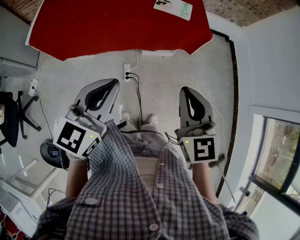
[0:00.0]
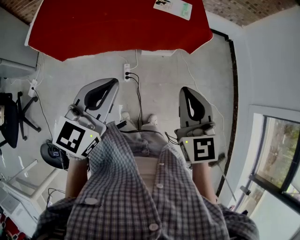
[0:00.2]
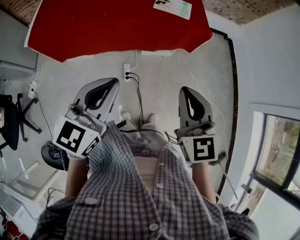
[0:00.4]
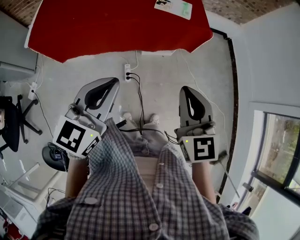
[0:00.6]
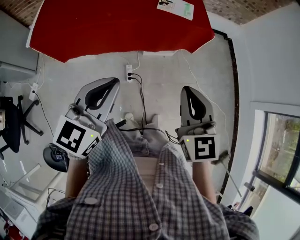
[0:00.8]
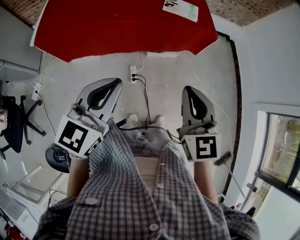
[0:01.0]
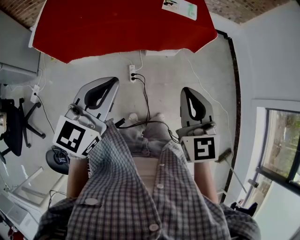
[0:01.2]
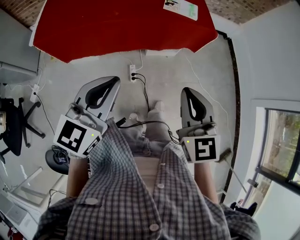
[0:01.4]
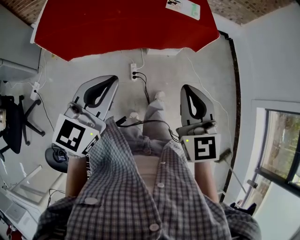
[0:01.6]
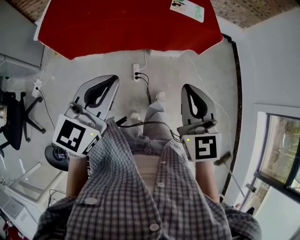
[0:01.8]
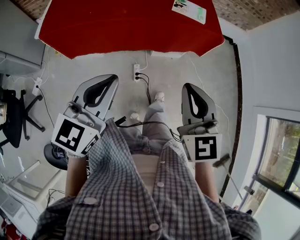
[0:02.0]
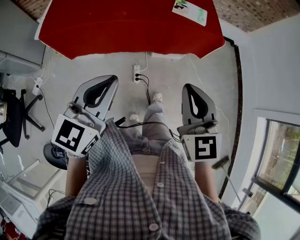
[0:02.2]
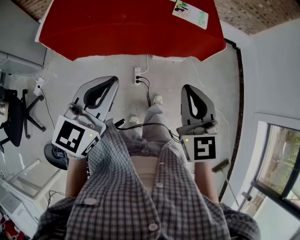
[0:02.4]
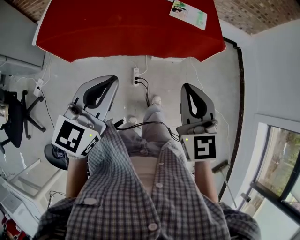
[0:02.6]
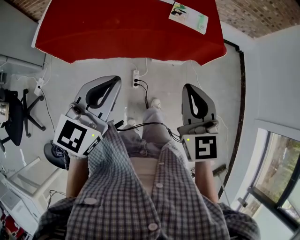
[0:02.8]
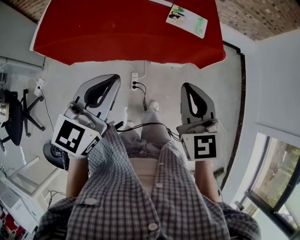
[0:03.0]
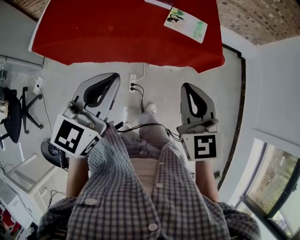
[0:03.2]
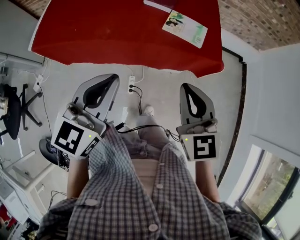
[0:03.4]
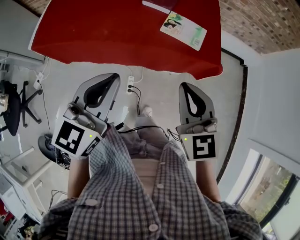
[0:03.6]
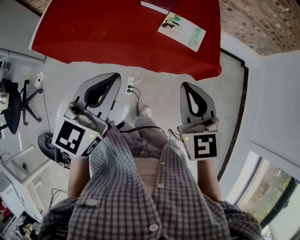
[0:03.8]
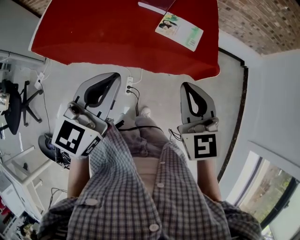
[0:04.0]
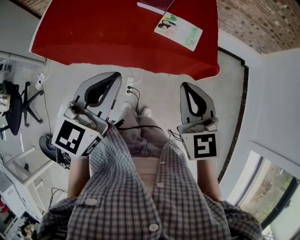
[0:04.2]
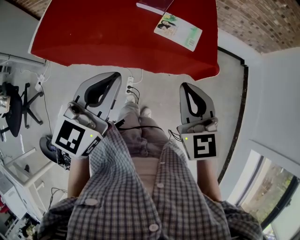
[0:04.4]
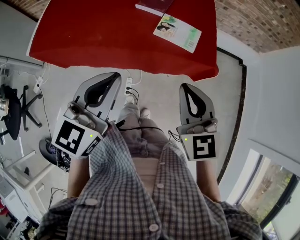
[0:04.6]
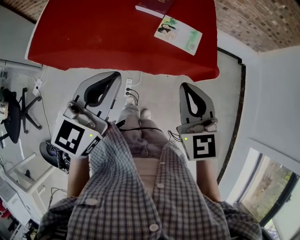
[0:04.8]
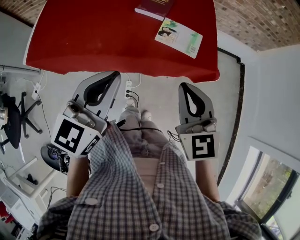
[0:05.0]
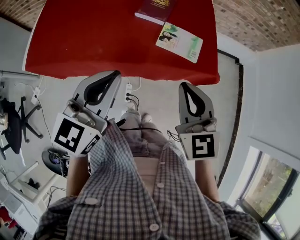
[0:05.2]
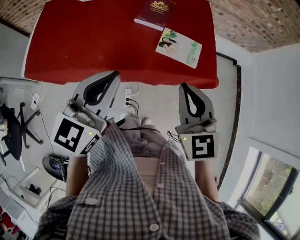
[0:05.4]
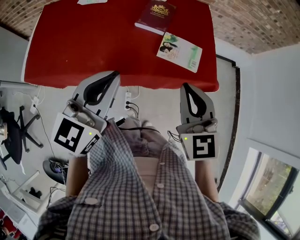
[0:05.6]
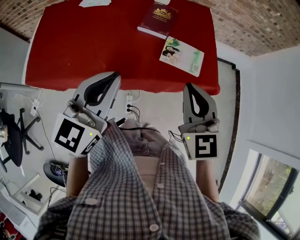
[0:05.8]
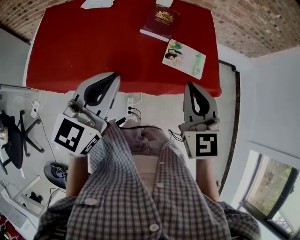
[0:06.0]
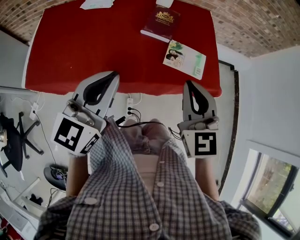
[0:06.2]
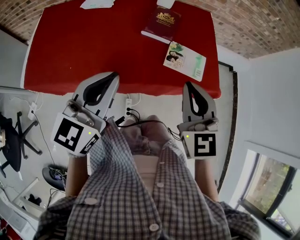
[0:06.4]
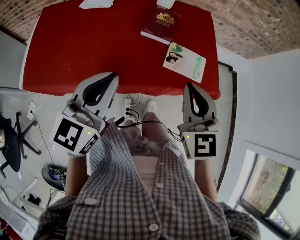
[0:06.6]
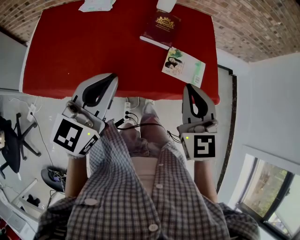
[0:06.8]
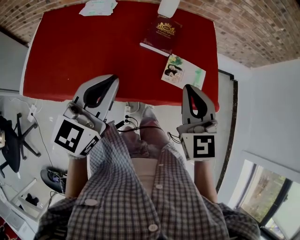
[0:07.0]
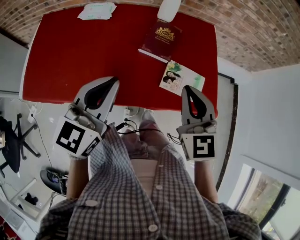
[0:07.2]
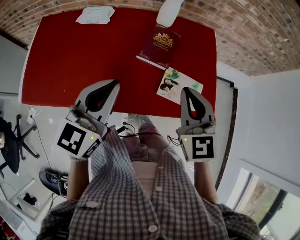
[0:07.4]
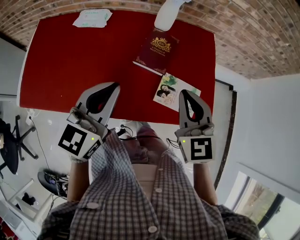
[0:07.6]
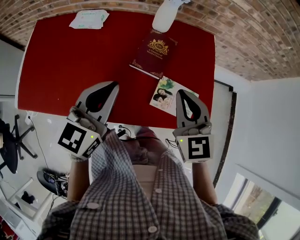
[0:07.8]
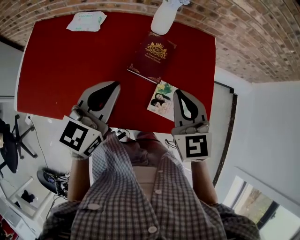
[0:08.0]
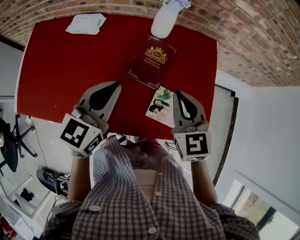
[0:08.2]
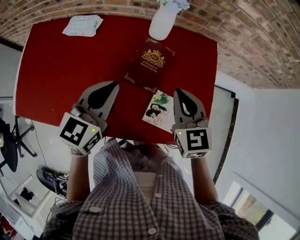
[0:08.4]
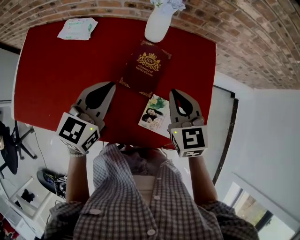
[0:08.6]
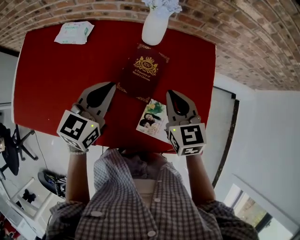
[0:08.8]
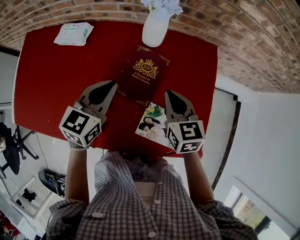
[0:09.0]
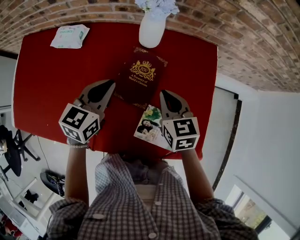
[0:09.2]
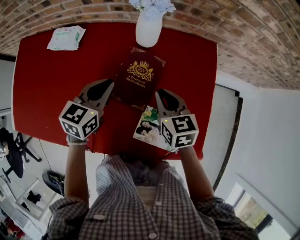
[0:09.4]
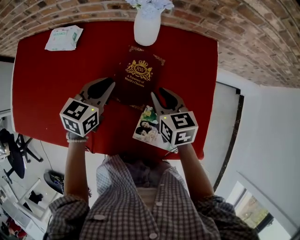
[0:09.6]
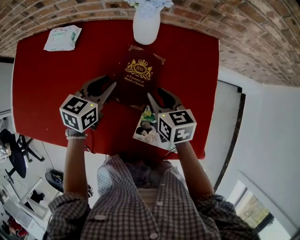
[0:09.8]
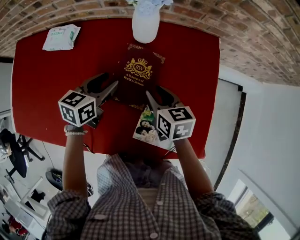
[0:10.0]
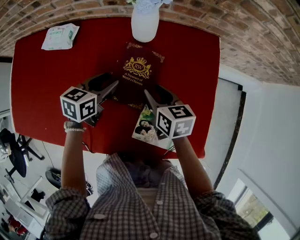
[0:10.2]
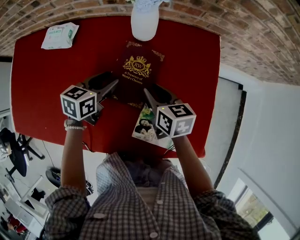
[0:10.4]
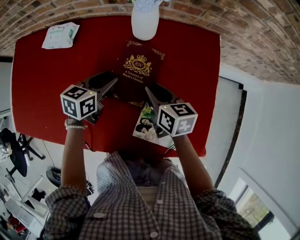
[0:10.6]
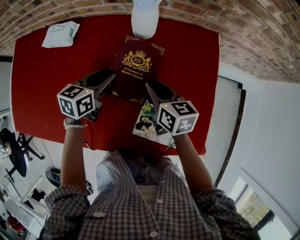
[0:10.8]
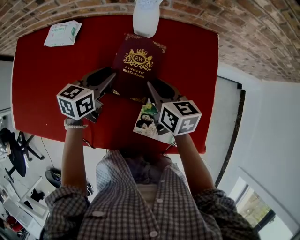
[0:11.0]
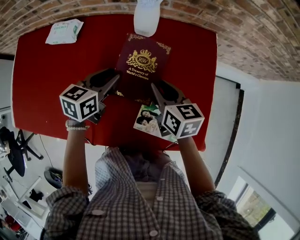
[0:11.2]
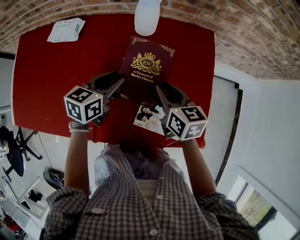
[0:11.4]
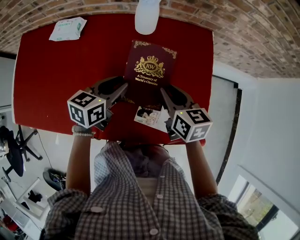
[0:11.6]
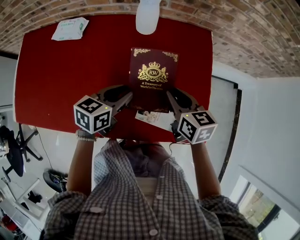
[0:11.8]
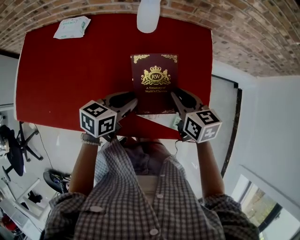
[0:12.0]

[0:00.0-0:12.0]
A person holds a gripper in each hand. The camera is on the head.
0:00.0 to 0:01.6: Both grippers move to the left, roughly 10 cm.
0:01.6 to 0:03.0: The grippers both shift forward by some 15 cm.
0:03.0 to 0:04.4: The right gripper travels forward and to the right by about 10 cm. Meanwhile the left gripper moves to the right and forward, some 10 cm.
0:04.4 to 0:06.0: The two grippers go about 15 cm forward and to the left.
0:06.0 to 0:07.6: Both grippers move forward, approximately 15 cm.
0:07.6 to 0:09.0: The grippers both shift forward and downward by approximately 20 cm. The right gripper rotates roughly 20 degrees.
0:09.0 to 0:10.4: The two grippers go about 10 cm downward. The right gripper turns by some 20 degrees, and opens up. Meanwhile the left gripper changes its angle by approximately 20 degrees, and opens.
0:10.4 to 0:12.0: The left gripper travels backward and to the right by some 15 cm, and closes its fingers. Meanwhile the right gripper heads backward, to the right and upward, covering roughly 15 cm.

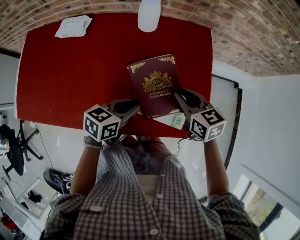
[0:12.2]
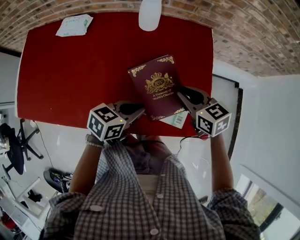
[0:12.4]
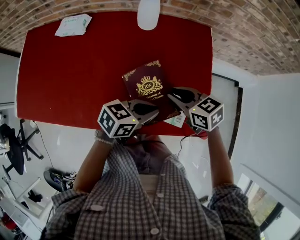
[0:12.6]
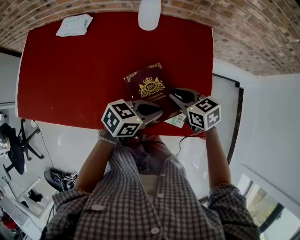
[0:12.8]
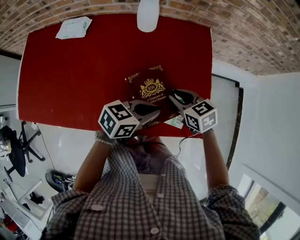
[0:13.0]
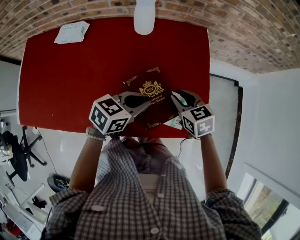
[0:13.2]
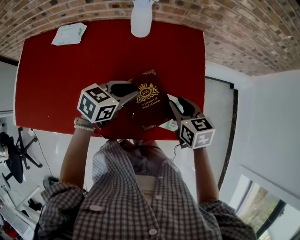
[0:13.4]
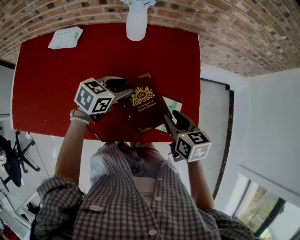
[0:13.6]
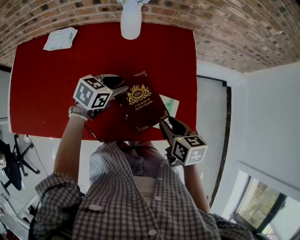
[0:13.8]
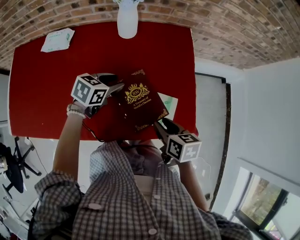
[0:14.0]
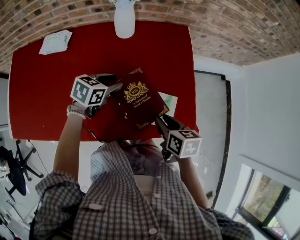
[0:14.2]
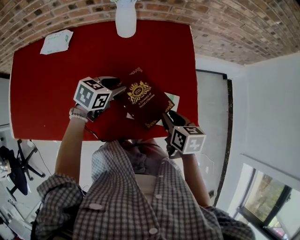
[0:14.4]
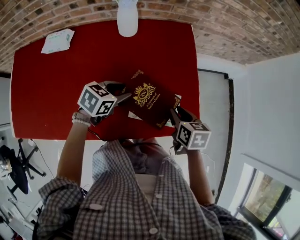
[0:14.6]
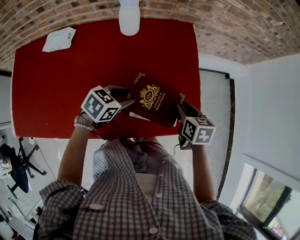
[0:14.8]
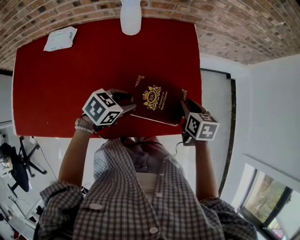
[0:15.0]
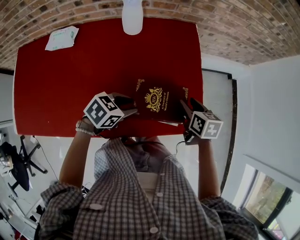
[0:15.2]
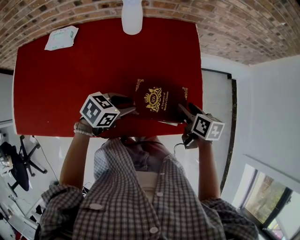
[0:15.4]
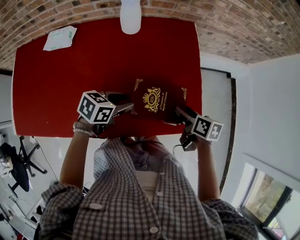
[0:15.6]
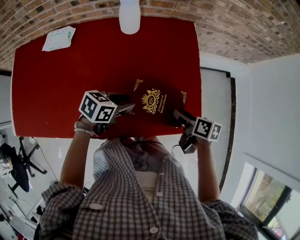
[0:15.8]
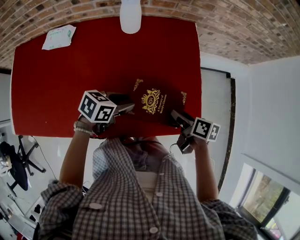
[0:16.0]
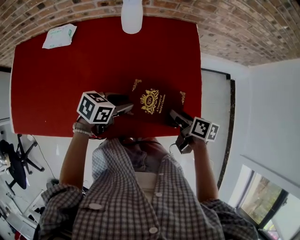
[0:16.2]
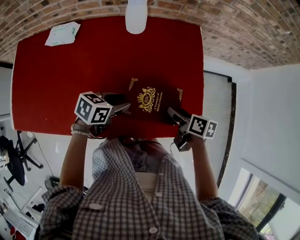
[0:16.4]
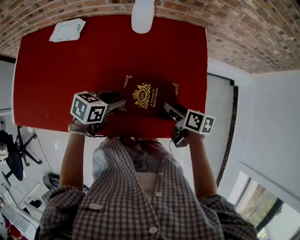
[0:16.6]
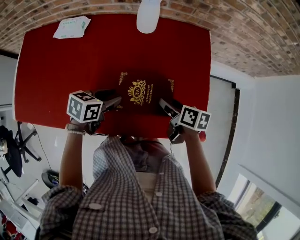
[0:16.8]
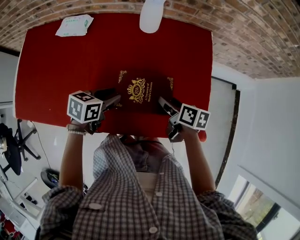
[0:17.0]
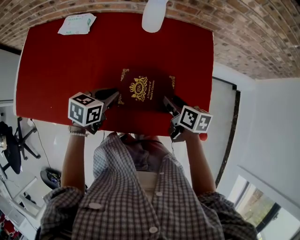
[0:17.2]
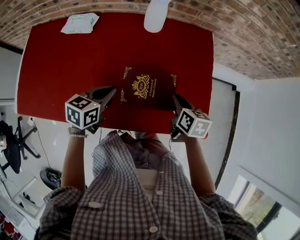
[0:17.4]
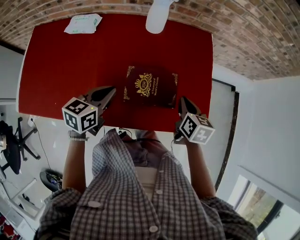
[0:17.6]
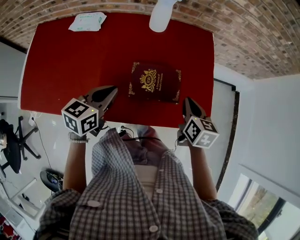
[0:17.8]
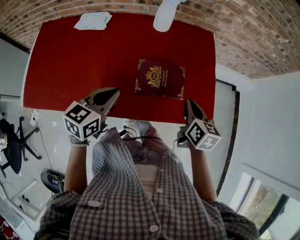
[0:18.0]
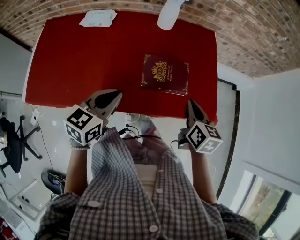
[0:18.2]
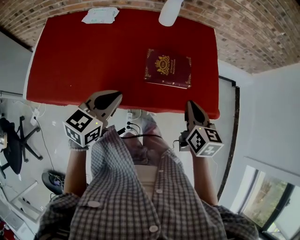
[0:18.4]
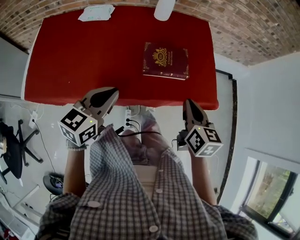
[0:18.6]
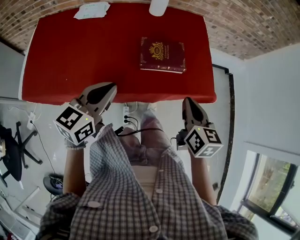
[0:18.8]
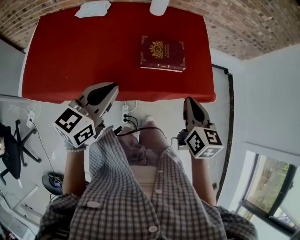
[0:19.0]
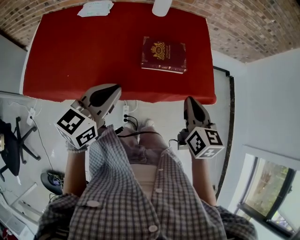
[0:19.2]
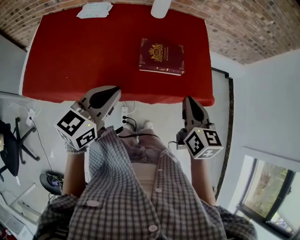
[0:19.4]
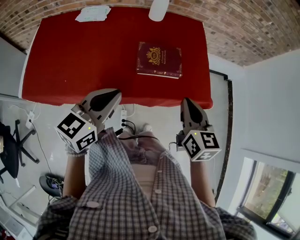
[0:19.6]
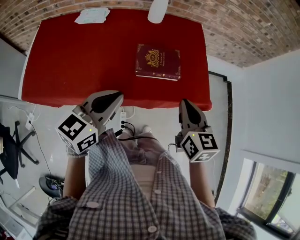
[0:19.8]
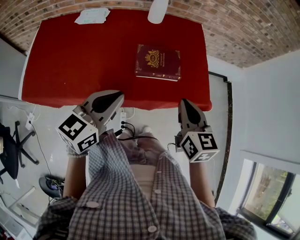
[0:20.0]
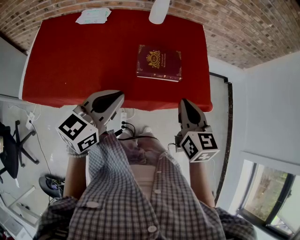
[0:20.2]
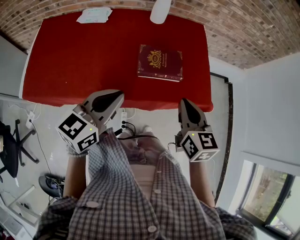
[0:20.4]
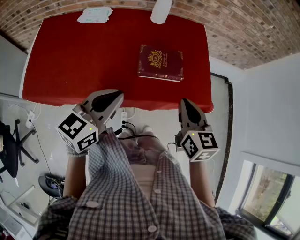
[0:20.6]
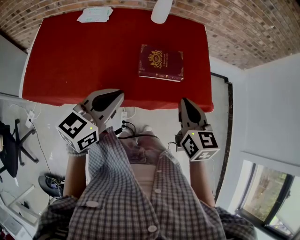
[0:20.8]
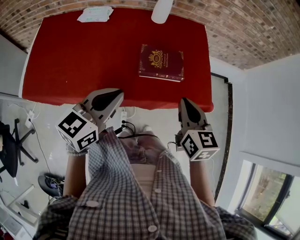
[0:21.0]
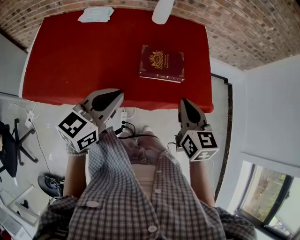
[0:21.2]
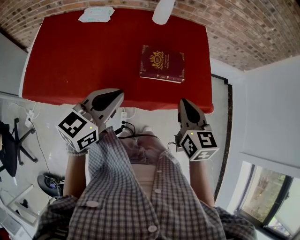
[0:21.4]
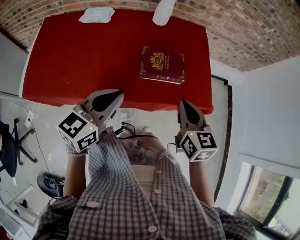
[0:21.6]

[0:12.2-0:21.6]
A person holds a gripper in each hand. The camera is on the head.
0:12.2 to 0:13.8: The left gripper ends up about 10 cm from where it was, and opens; the right gripper ends up roughly 10 cm from where it was, and changes its angle by some 20 degrees.
0:13.8 to 0:15.4: The left gripper shifts roughly 10 cm backward and to the right, while the right gripper heads forward, covering some 5 cm, and opens its fingers.
0:15.4 to 0:17.0: Both grippers move to the left, some 10 cm. The left gripper changes its angle by some 30 degrees.
0:17.0 to 0:18.4: The two grippers go some 20 cm backward and upward. The right gripper rotates approximately 40 degrees, and closes its fingers. Meanwhile the left gripper changes its angle by approximately 30 degrees, and closes.
0:18.4 to 0:20.0: The right gripper shifts by approximately 5 cm. Meanwhile the left gripper shifts roughly 5 cm upward.
0:20.0 to 0:21.6: There are only small adjustments of the grippers.

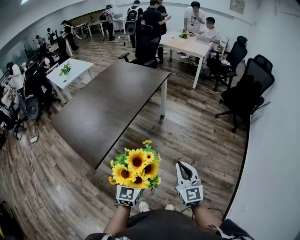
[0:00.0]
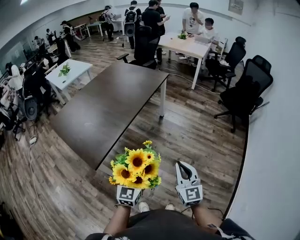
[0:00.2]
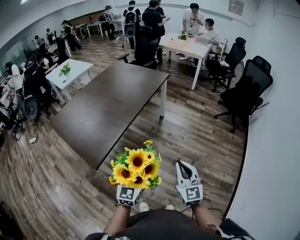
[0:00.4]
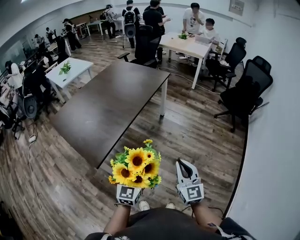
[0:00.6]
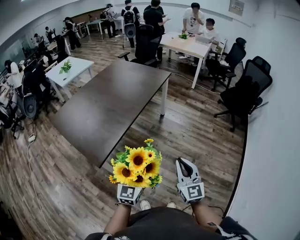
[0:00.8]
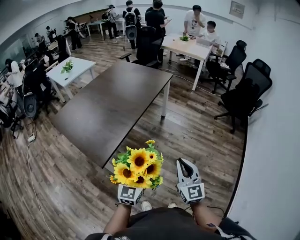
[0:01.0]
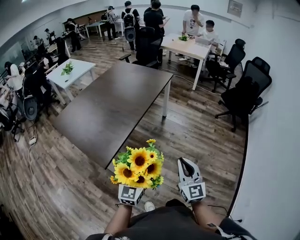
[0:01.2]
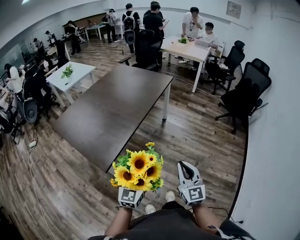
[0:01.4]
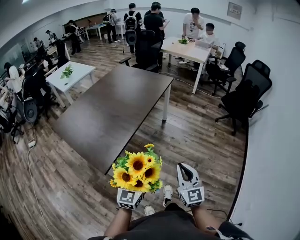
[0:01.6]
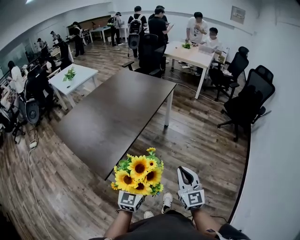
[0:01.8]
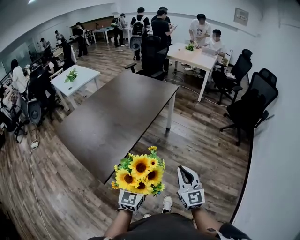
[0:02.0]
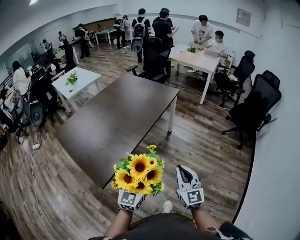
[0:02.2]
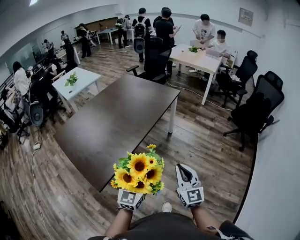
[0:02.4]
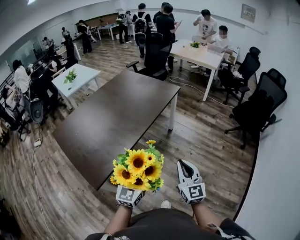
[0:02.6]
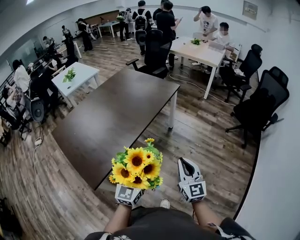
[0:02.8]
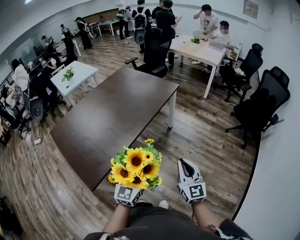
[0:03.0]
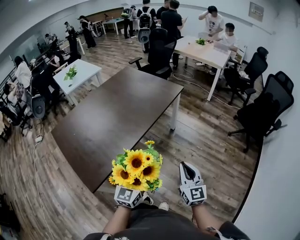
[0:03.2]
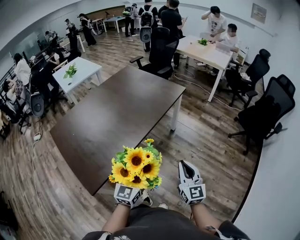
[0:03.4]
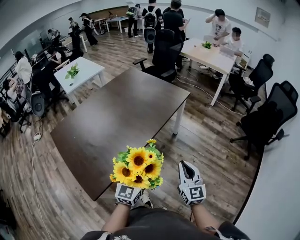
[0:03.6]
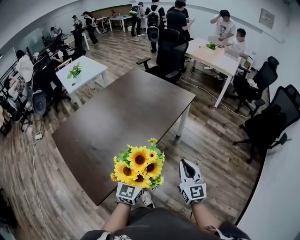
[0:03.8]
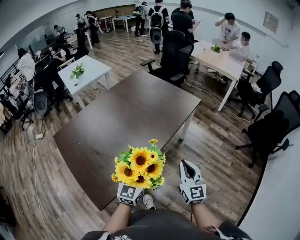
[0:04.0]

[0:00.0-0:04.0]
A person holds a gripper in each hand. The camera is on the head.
0:00.0 to 0:01.4: Both grippers travel together to the left, some 10 cm.
0:01.4 to 0:02.6: The grippers both shift forward by some 20 cm.
0:02.6 to 0:04.0: The left gripper moves forward and to the left, about 20 cm; the right gripper travels forward by some 20 cm.
